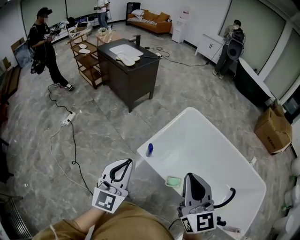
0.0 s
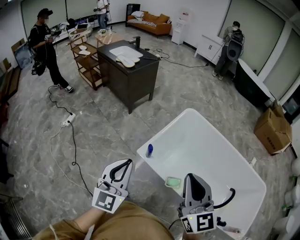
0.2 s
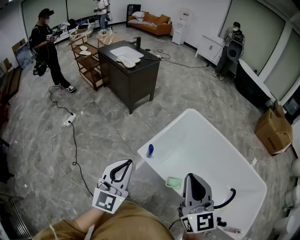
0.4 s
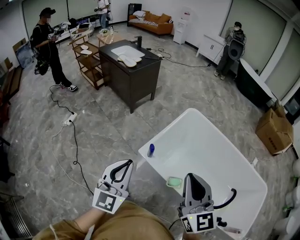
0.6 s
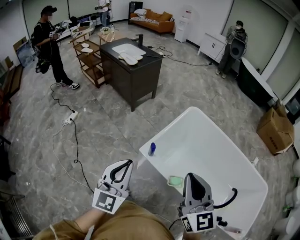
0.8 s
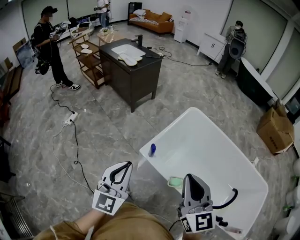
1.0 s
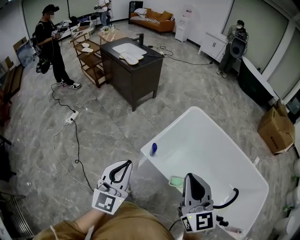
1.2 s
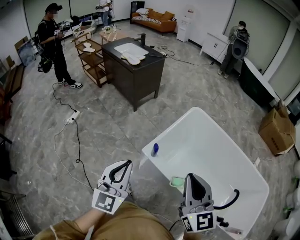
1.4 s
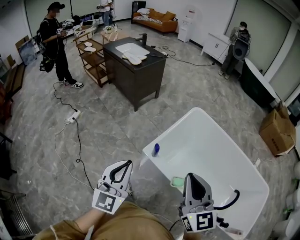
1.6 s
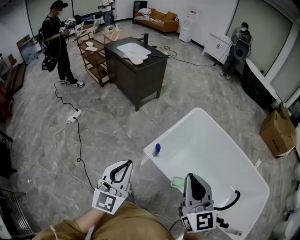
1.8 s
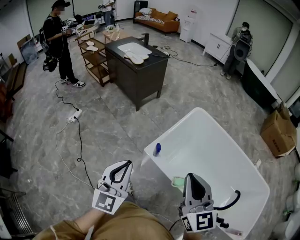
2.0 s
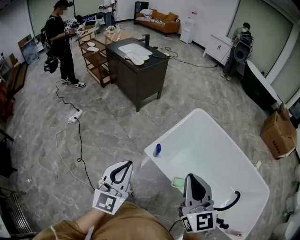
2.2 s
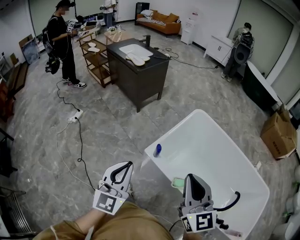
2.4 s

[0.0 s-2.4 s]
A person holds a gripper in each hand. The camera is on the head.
0.0 to 2.4 s: The grippers make only small movements.

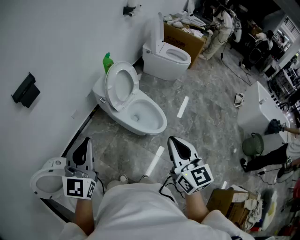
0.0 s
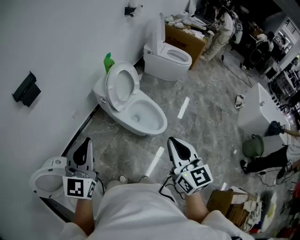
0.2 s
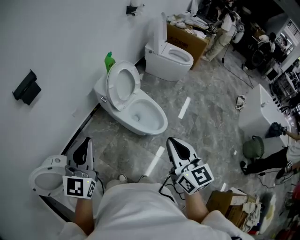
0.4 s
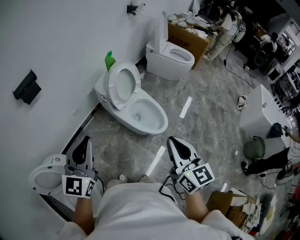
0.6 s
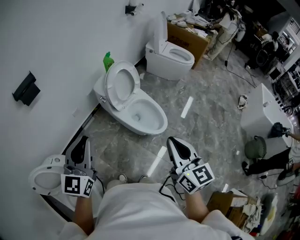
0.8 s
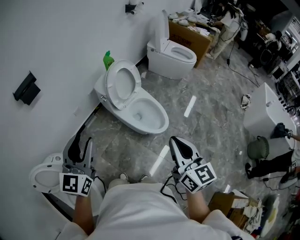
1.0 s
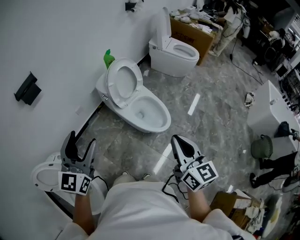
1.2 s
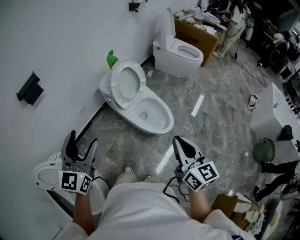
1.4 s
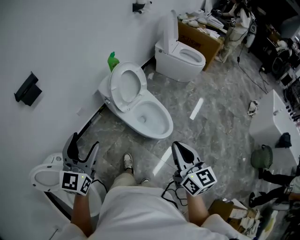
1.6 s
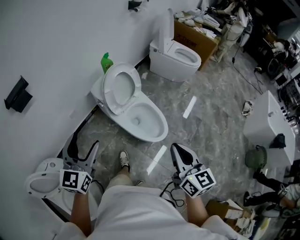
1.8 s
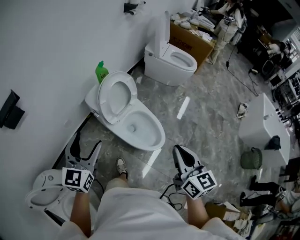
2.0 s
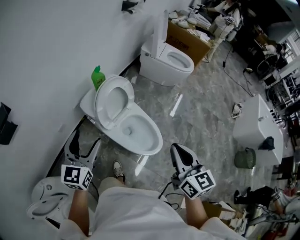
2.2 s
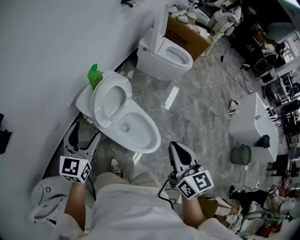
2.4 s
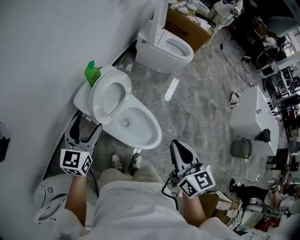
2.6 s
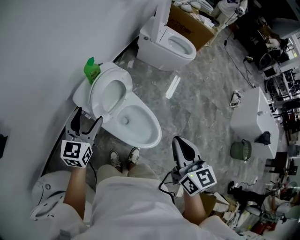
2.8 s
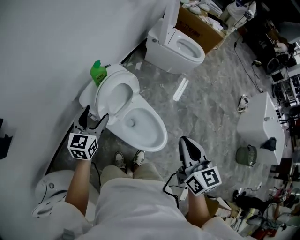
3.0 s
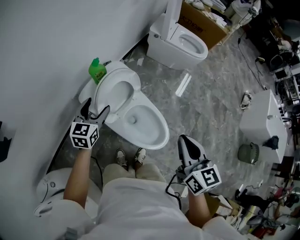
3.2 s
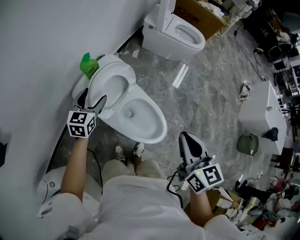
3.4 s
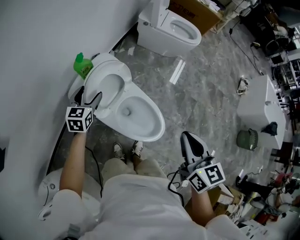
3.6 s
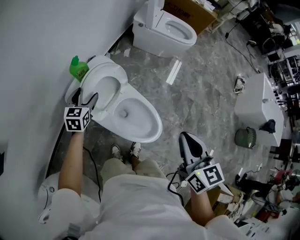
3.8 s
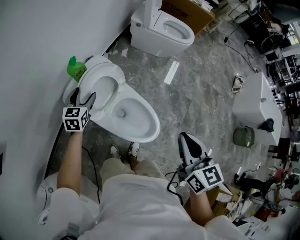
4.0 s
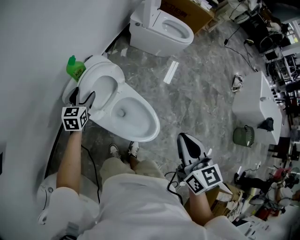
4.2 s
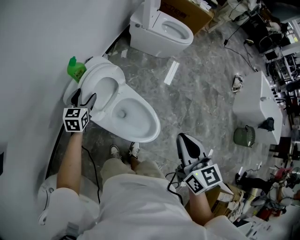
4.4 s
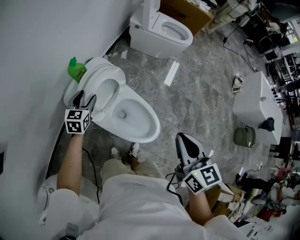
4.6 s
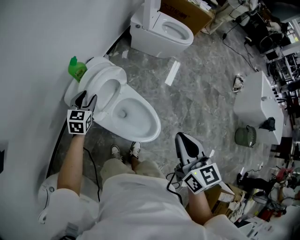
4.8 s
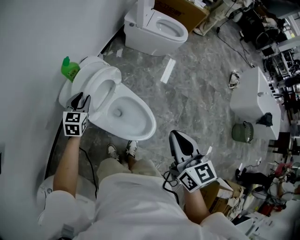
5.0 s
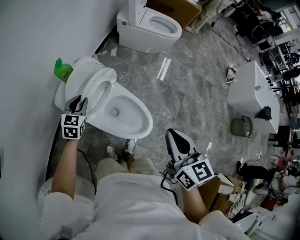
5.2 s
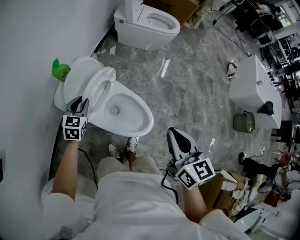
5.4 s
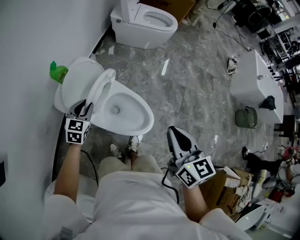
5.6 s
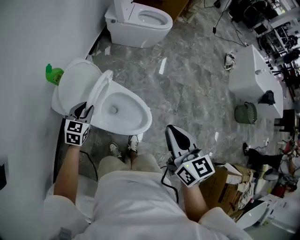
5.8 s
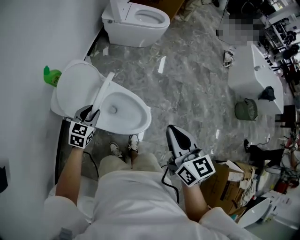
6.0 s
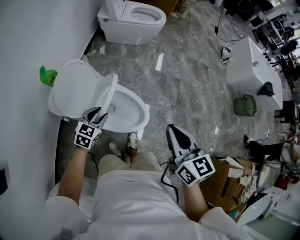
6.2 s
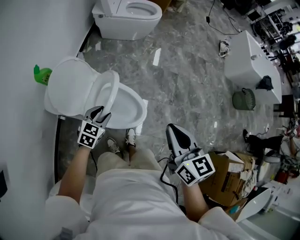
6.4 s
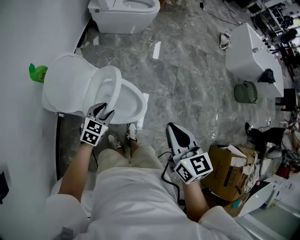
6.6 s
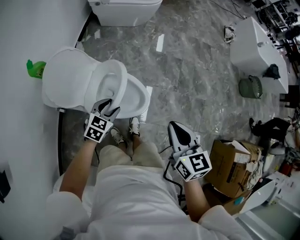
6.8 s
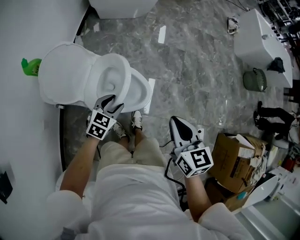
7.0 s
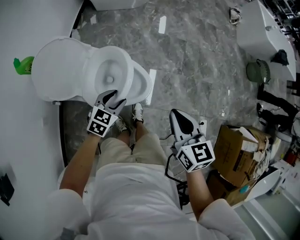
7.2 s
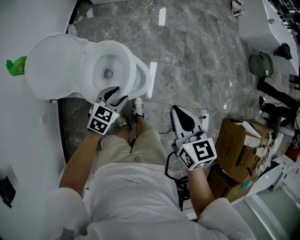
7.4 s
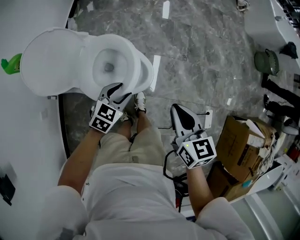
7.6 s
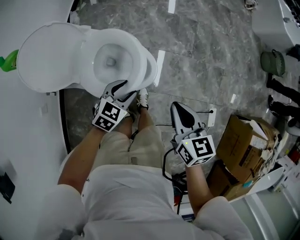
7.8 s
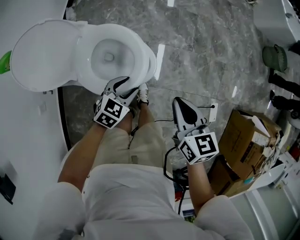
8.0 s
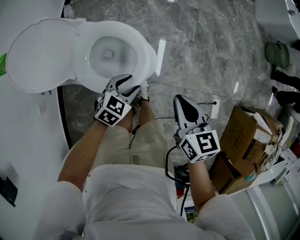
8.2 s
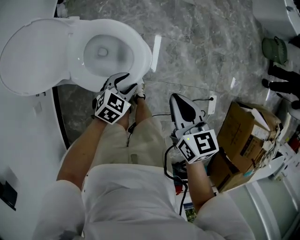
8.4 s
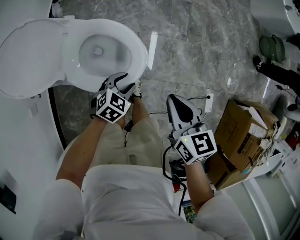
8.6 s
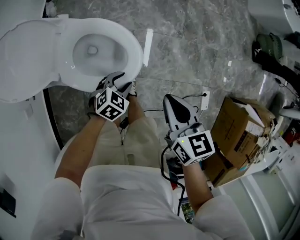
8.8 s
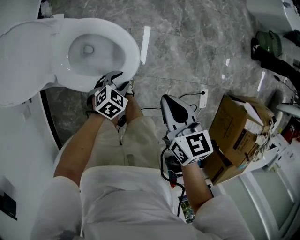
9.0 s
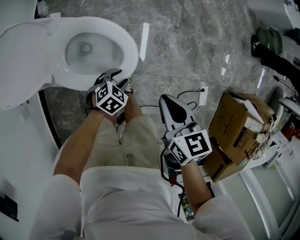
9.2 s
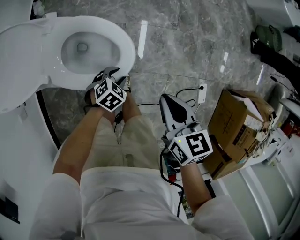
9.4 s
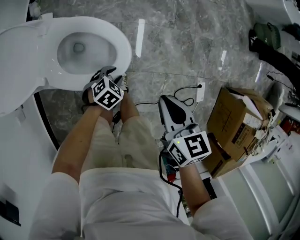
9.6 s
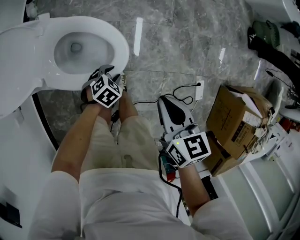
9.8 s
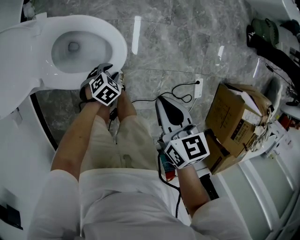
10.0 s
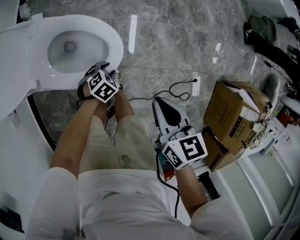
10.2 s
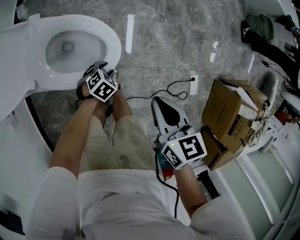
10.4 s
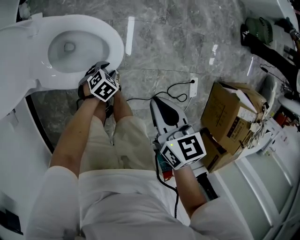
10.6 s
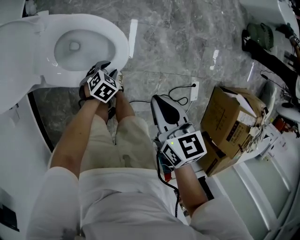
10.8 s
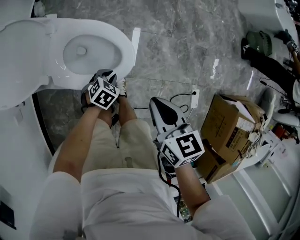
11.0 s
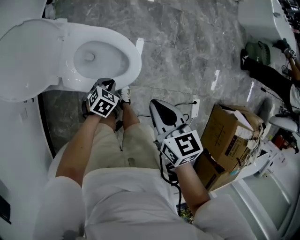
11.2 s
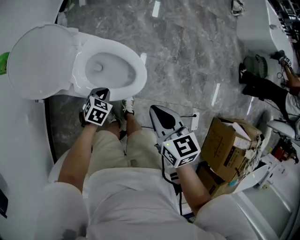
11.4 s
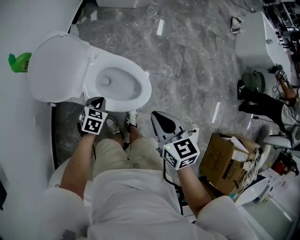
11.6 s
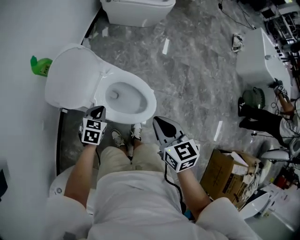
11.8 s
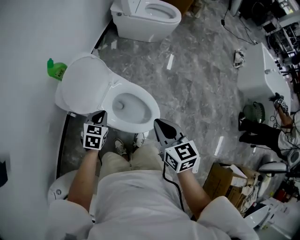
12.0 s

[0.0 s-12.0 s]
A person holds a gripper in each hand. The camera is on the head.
0.0 to 1.6 s: The left gripper changes place by roughly 5 cm, and opens; the right gripper travels to the right and downward by about 10 cm.
1.6 to 3.0 s: The right gripper goes roughly 30 cm forward. The left gripper shifts about 40 cm forward and downward.
3.0 to 4.4 s: The left gripper moves forward and downward, about 15 cm.
4.4 to 6.0 s: The right gripper travels to the right by about 5 cm, while the left gripper shifts roughly 20 cm to the right and backward, rotates about 30 degrees, and closes up.
6.0 to 7.6 s: The right gripper is displaced downward and to the right by approximately 25 cm. Meanwhile the left gripper moves to the right and downward, approximately 25 cm, and rotates approximately 30 degrees.
7.6 to 9.0 s: The right gripper is displaced downward by some 10 cm; the left gripper moves downward and to the right, roughly 20 cm, and swivels some 20 degrees.
9.0 to 10.4 s: The left gripper heads downward, covering about 10 cm.
10.4 to 12.0 s: The left gripper moves upward, roughly 35 cm, swivels some 60 degrees, and closes up. The right gripper changes place by roughly 30 cm, and rotates some 30 degrees.

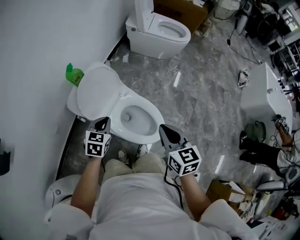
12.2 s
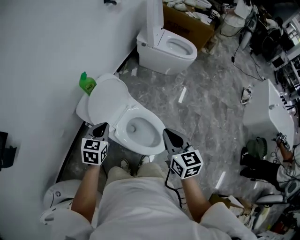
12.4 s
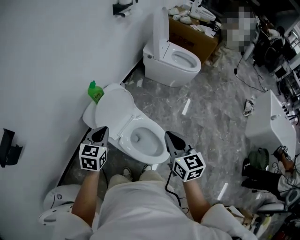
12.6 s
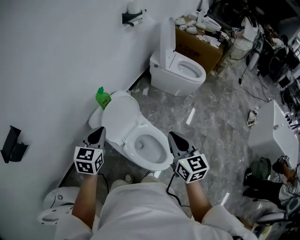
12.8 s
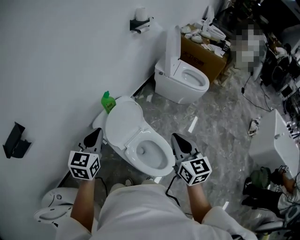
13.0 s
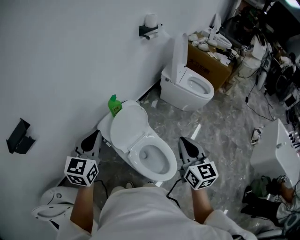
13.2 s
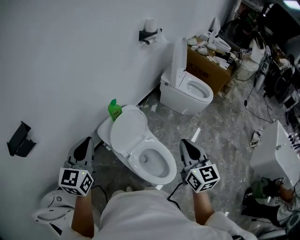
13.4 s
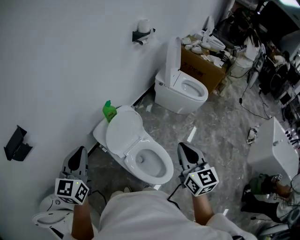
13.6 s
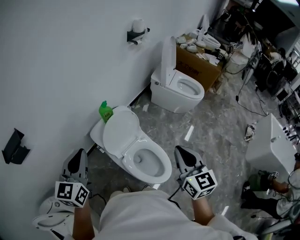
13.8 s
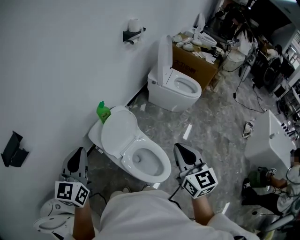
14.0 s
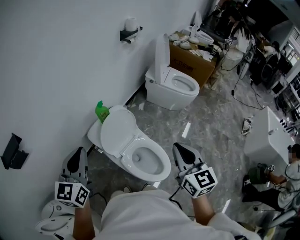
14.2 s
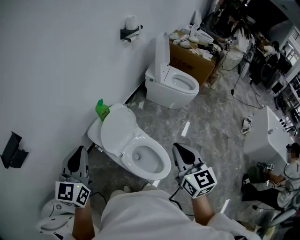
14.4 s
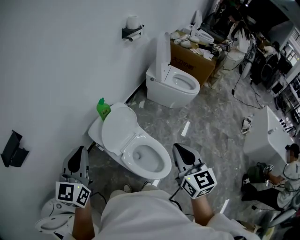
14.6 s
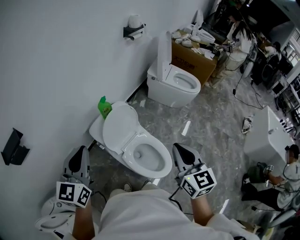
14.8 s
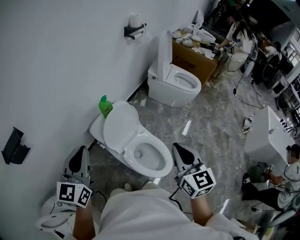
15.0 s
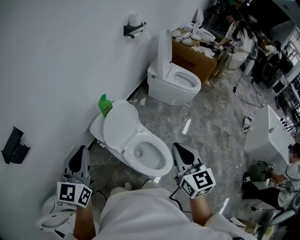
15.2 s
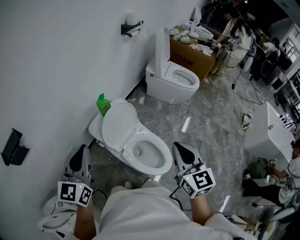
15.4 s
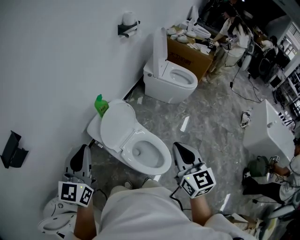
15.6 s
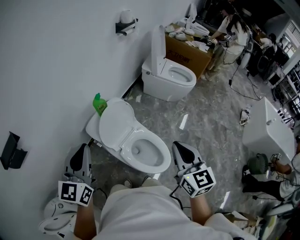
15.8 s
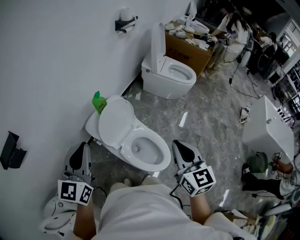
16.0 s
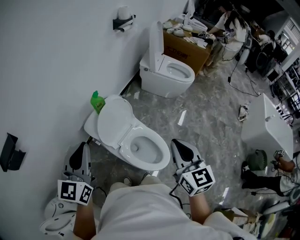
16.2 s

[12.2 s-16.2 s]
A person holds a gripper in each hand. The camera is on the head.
12.2 to 13.6 s: The left gripper travels upward and to the left by approximately 35 cm, and points its fingers approximately 30 degrees further upward, while the right gripper moves upward, approximately 20 cm, and changes its angle by approximately 20 degrees.
13.6 to 14.8 s: The right gripper changes place by some 5 cm.
14.8 to 16.2 s: The grippers stay close to where they were, moving slightly.

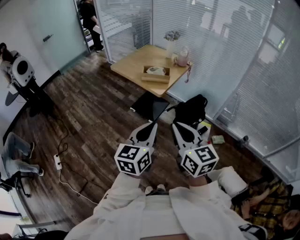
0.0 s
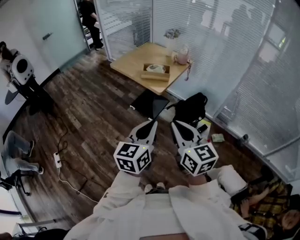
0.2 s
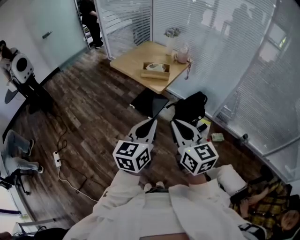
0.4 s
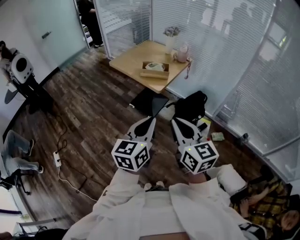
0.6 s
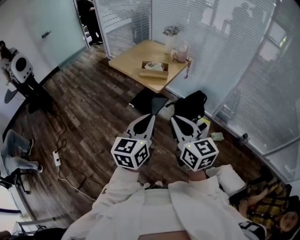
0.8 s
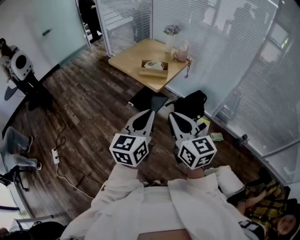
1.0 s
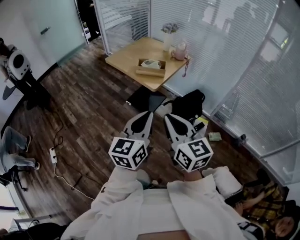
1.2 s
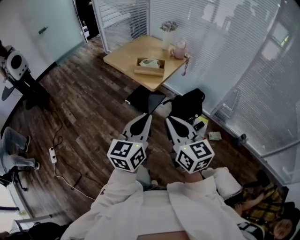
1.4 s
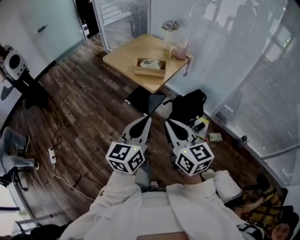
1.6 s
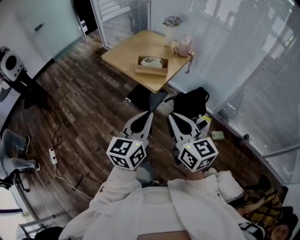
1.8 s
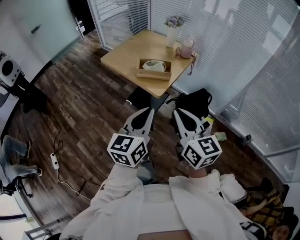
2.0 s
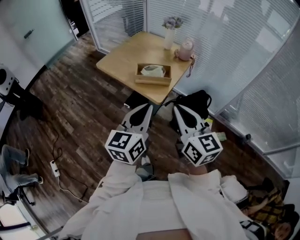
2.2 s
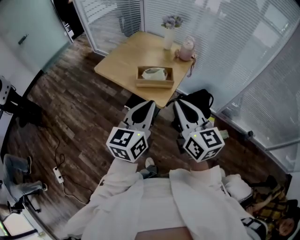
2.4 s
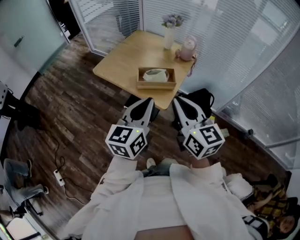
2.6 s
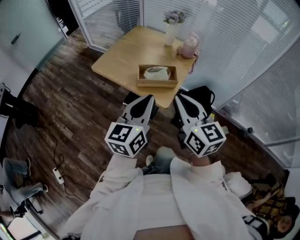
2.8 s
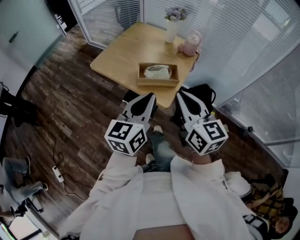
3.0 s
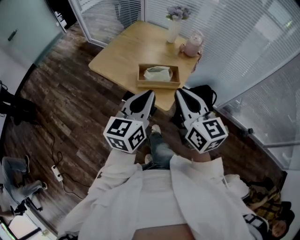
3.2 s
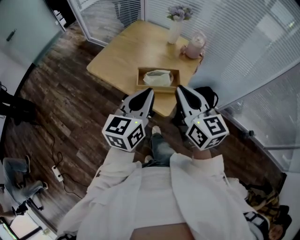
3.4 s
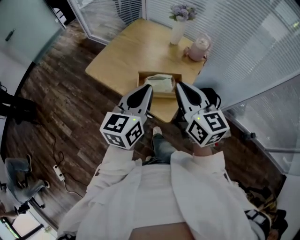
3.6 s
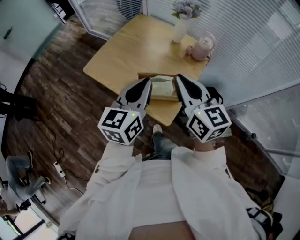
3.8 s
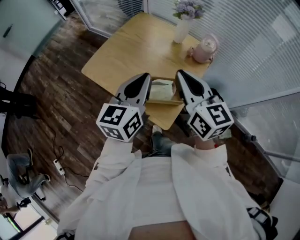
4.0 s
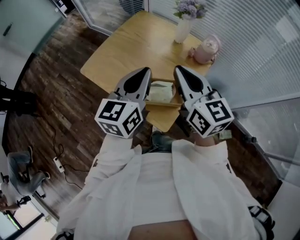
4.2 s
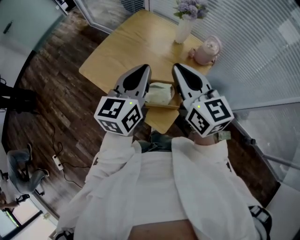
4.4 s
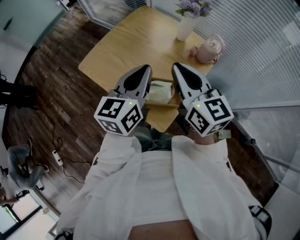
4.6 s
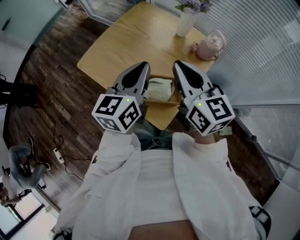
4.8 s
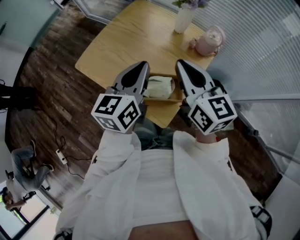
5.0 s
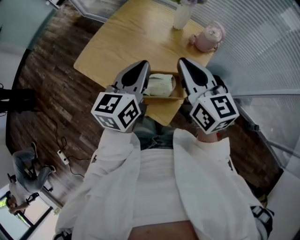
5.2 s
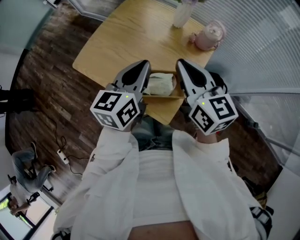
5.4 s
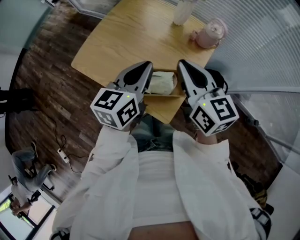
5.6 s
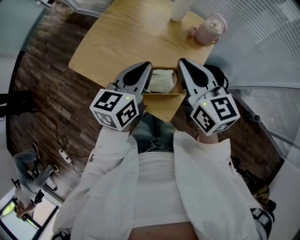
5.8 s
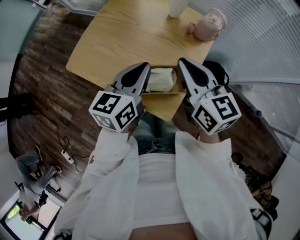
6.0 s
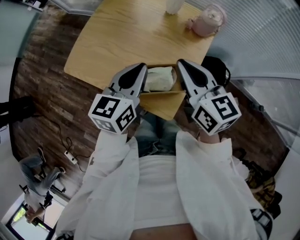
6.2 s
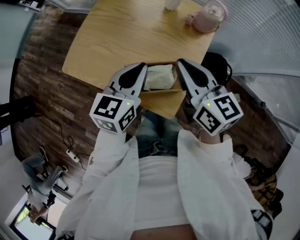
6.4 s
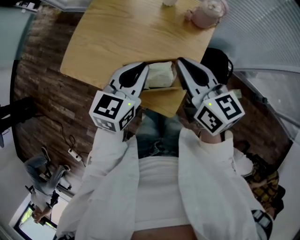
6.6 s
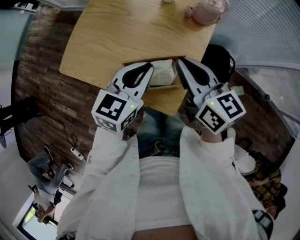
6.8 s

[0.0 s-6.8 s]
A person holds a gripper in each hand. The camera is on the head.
0.0 to 1.4 s: The left gripper shifts by some 5 cm, while the right gripper moves about 5 cm.
1.4 to 2.8 s: Both grippers travel together forward, roughly 30 cm.
2.8 to 4.0 s: The two grippers go approximately 20 cm forward.
4.0 to 5.4 s: The left gripper is displaced forward by about 5 cm; the right gripper shifts by roughly 5 cm.
5.4 to 6.8 s: The two grippers go roughly 10 cm downward. The left gripper swivels about 30 degrees.
